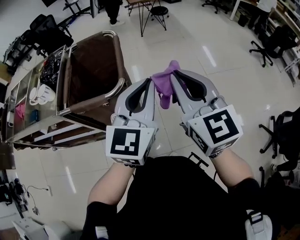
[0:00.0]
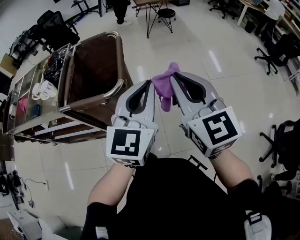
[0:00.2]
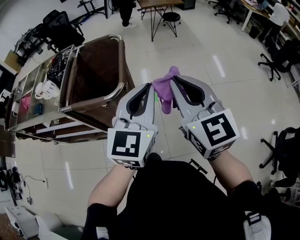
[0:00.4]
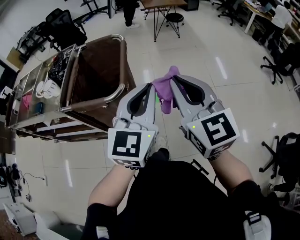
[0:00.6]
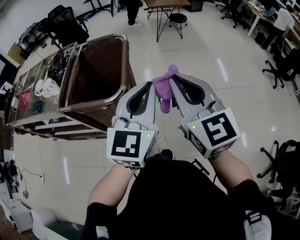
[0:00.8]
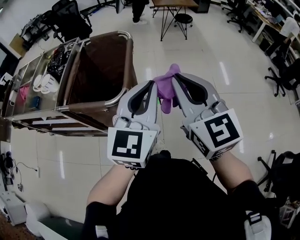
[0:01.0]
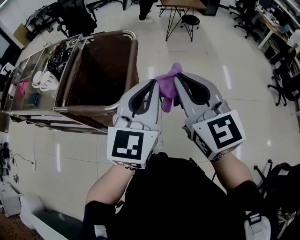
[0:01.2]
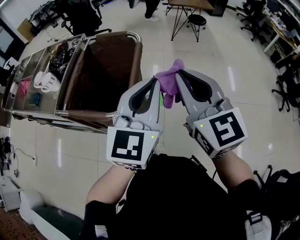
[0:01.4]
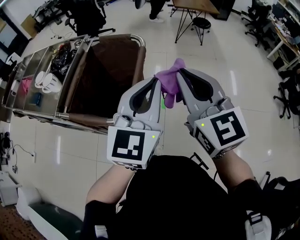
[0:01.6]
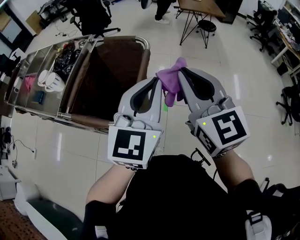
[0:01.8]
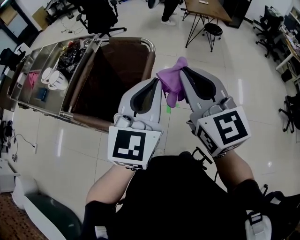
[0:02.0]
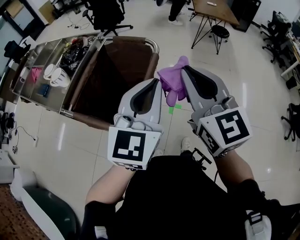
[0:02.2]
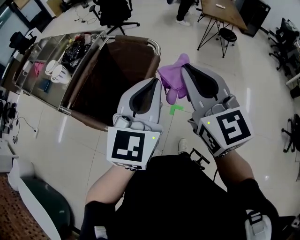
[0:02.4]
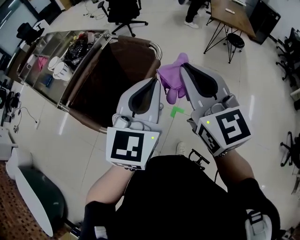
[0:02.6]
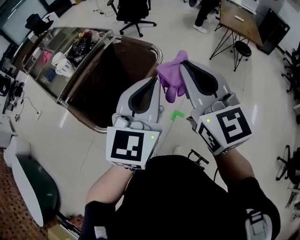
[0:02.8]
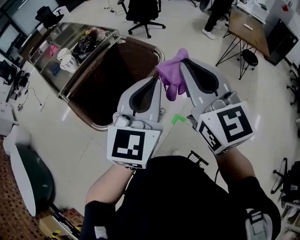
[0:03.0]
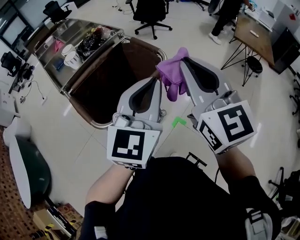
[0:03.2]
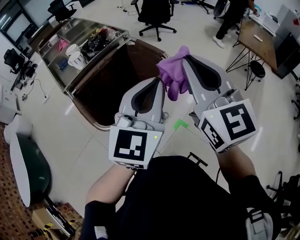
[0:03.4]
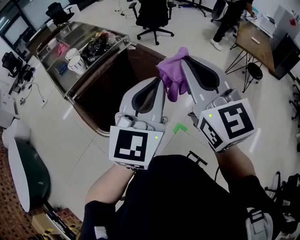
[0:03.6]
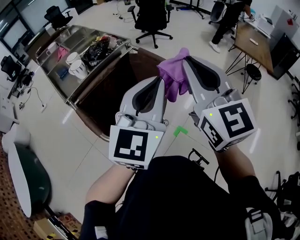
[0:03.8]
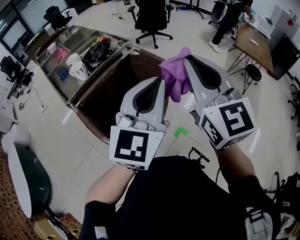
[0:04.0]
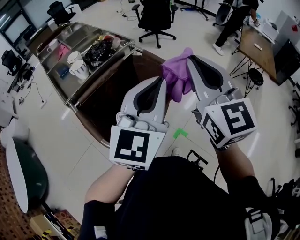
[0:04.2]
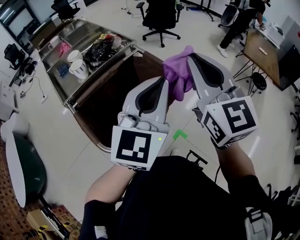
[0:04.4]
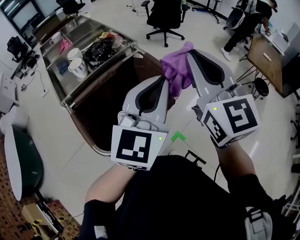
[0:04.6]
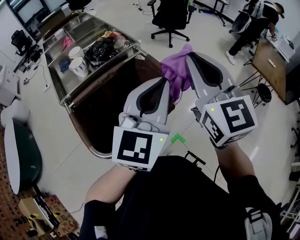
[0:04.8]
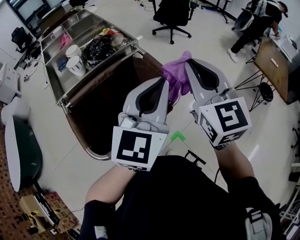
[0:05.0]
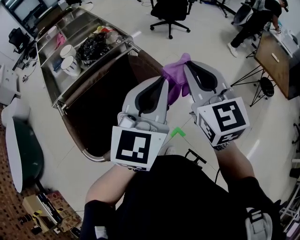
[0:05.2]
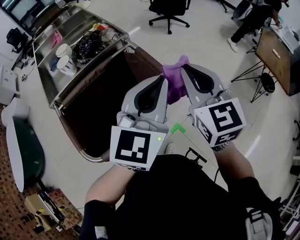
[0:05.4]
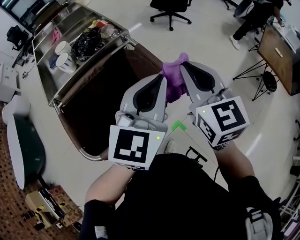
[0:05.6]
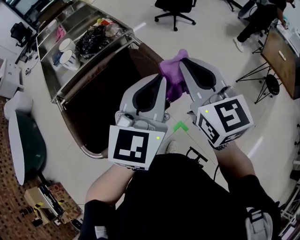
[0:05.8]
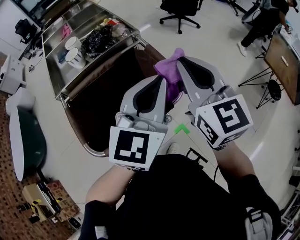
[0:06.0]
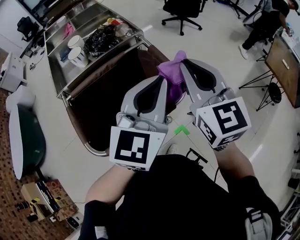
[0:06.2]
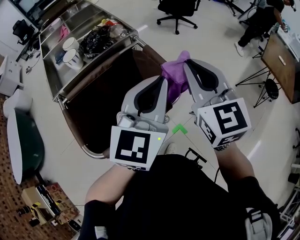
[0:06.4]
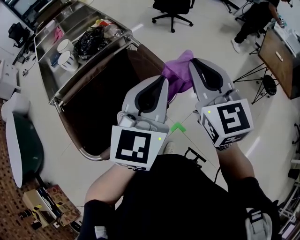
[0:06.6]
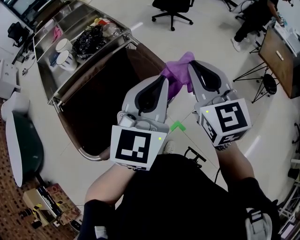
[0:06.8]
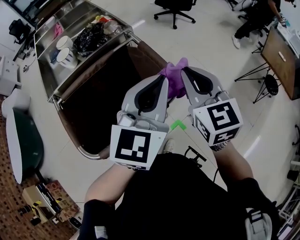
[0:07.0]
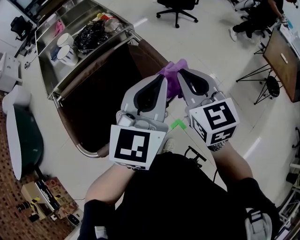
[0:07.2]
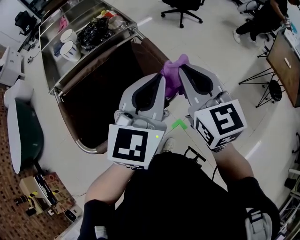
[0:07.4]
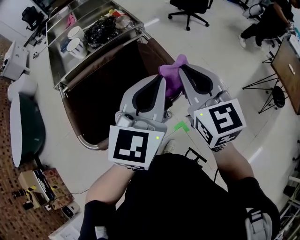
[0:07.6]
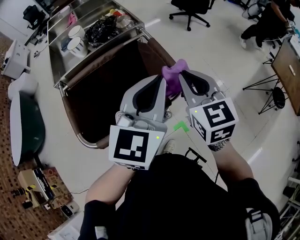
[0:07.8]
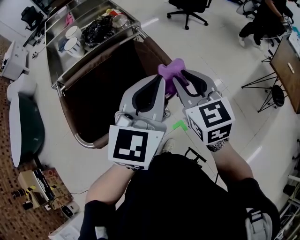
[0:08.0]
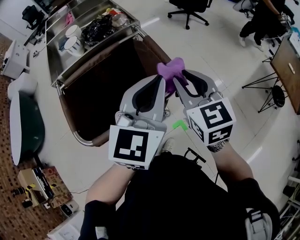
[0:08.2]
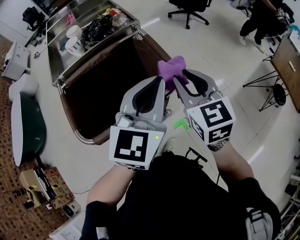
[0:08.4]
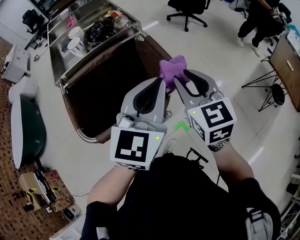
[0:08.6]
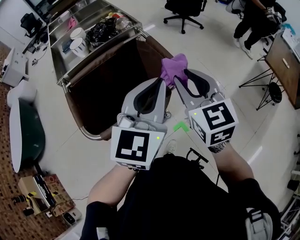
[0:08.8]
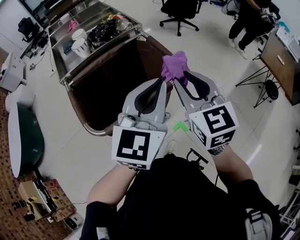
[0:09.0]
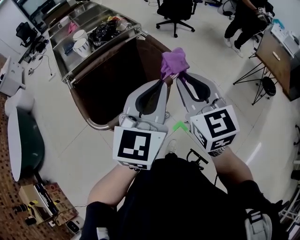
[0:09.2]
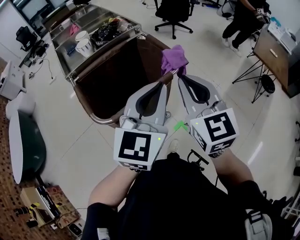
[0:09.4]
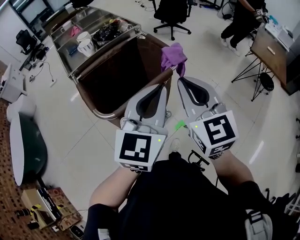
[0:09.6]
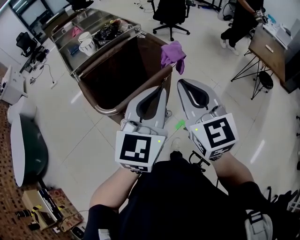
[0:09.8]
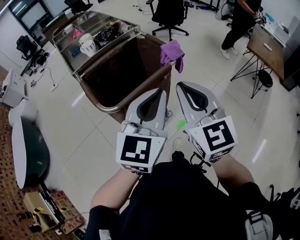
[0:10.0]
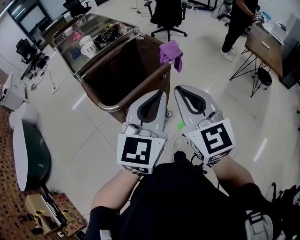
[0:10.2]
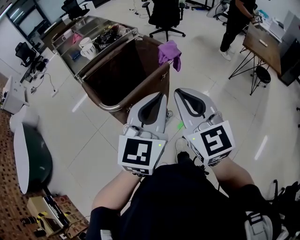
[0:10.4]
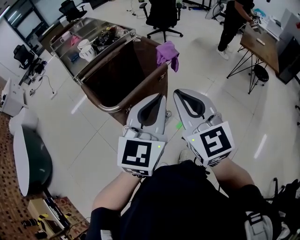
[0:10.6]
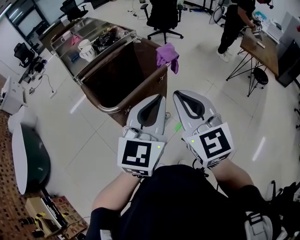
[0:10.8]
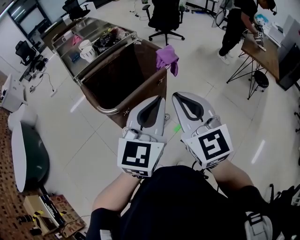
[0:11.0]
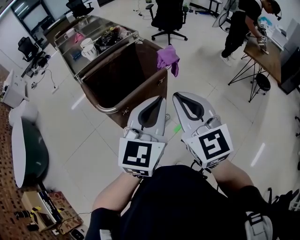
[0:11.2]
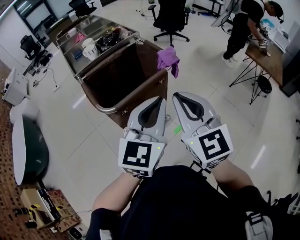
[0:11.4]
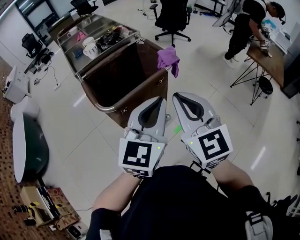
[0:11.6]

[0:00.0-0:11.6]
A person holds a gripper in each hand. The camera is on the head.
0:00.0 to 0:01.4: Both grippers move forward, roughly 15 cm.
0:01.4 to 0:02.8: The right gripper heads forward, upward and to the right, covering some 20 cm, and changes its angle by about 20 degrees, while the left gripper moves forward and to the right, approximately 15 cm, and rotates about 20 degrees.
0:02.8 to 0:04.4: Both grippers move forward, some 10 cm.
0:04.4 to 0:05.8: The right gripper shifts approximately 15 cm forward and downward. Meanwhile the left gripper moves forward, downward and to the right, some 15 cm.
0:05.8 to 0:07.2: The right gripper travels downward by approximately 10 cm.
0:07.2 to 0:08.8: The grippers both shift backward by approximately 5 cm. The right gripper opens.
0:08.8 to 0:10.2: The grippers both shift backward by roughly 25 cm. The right gripper closes.
0:10.2 to 0:11.6: The grippers move only a little.

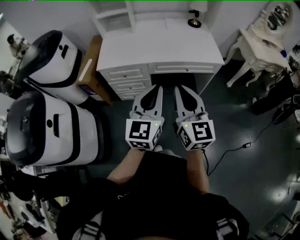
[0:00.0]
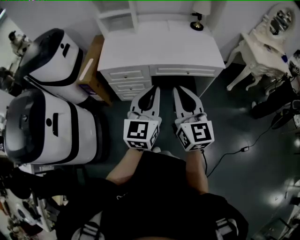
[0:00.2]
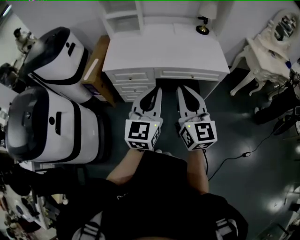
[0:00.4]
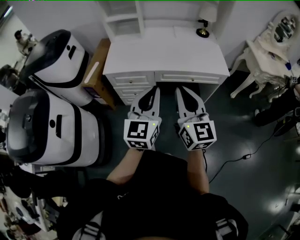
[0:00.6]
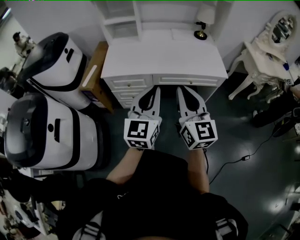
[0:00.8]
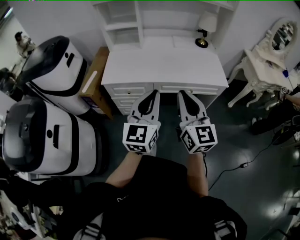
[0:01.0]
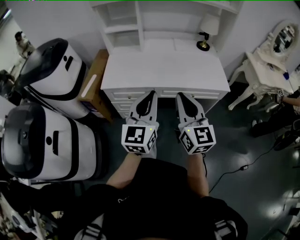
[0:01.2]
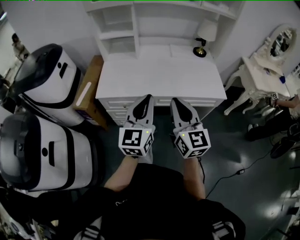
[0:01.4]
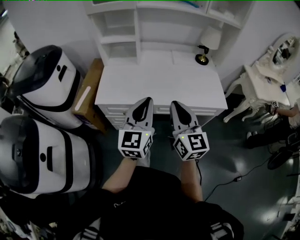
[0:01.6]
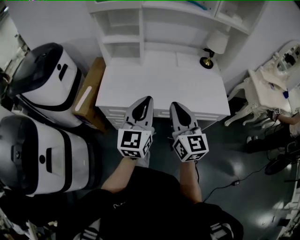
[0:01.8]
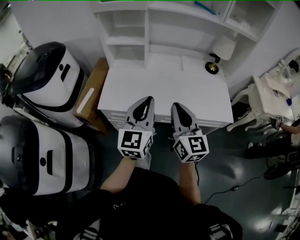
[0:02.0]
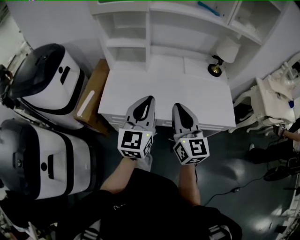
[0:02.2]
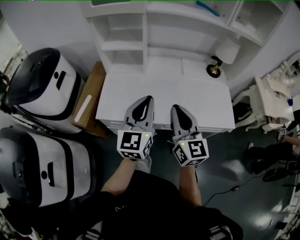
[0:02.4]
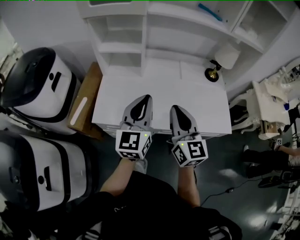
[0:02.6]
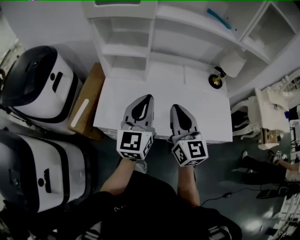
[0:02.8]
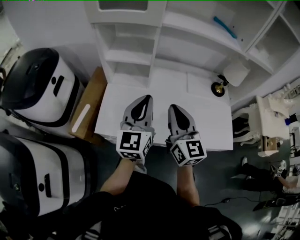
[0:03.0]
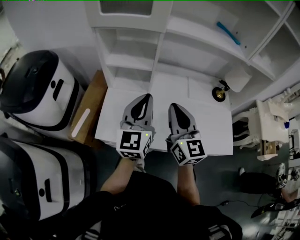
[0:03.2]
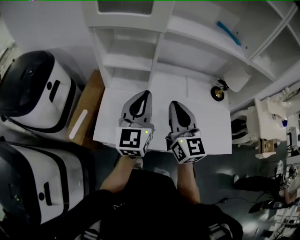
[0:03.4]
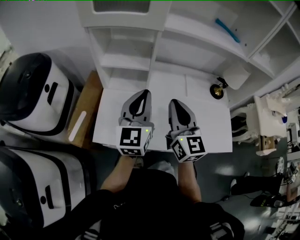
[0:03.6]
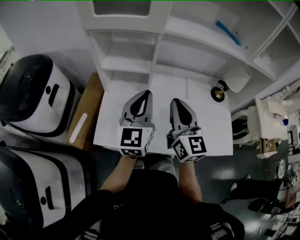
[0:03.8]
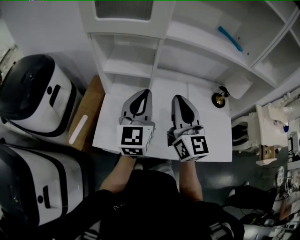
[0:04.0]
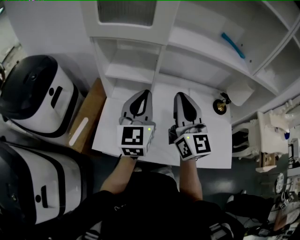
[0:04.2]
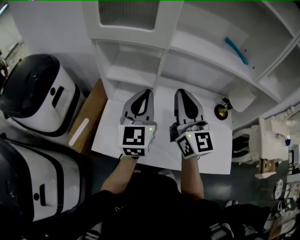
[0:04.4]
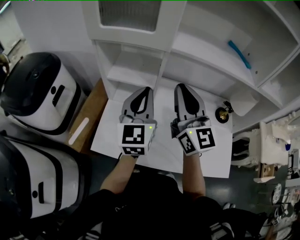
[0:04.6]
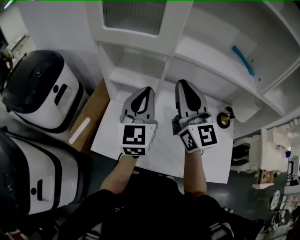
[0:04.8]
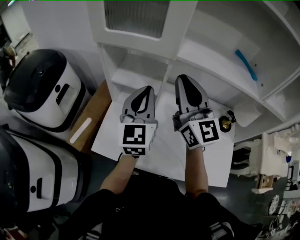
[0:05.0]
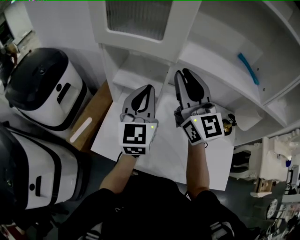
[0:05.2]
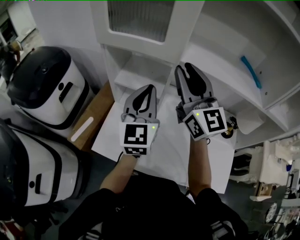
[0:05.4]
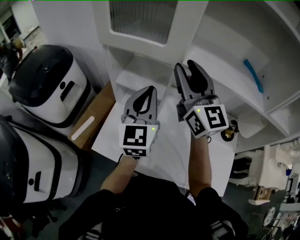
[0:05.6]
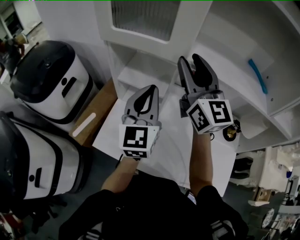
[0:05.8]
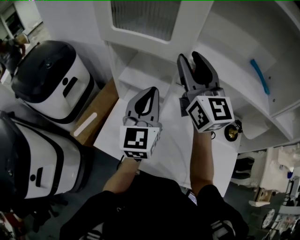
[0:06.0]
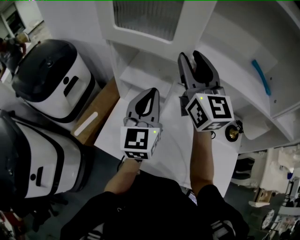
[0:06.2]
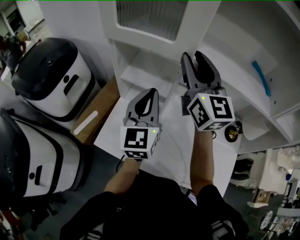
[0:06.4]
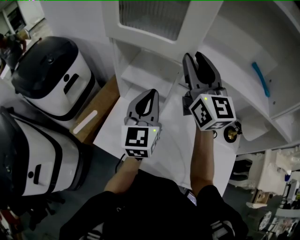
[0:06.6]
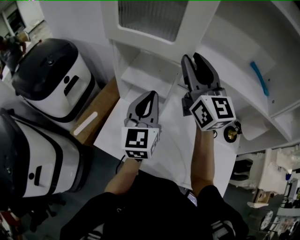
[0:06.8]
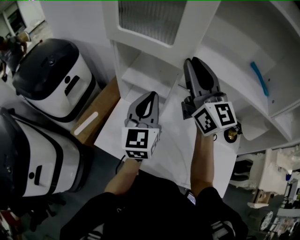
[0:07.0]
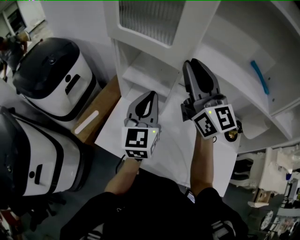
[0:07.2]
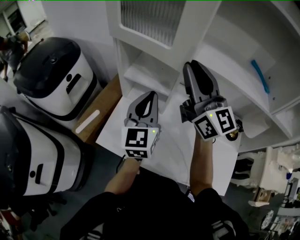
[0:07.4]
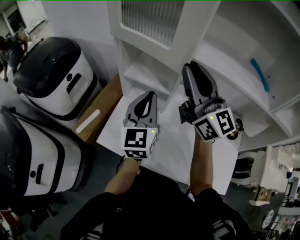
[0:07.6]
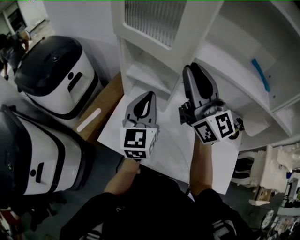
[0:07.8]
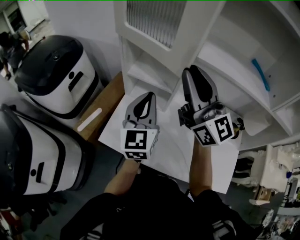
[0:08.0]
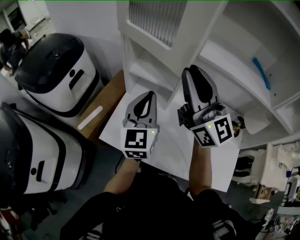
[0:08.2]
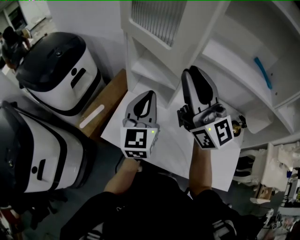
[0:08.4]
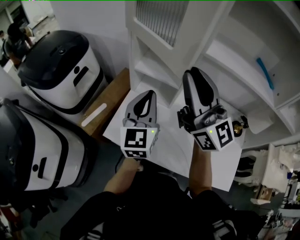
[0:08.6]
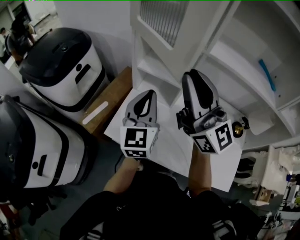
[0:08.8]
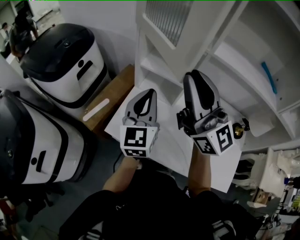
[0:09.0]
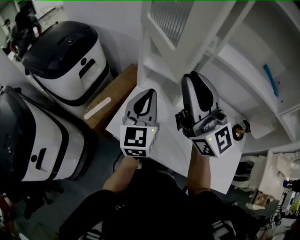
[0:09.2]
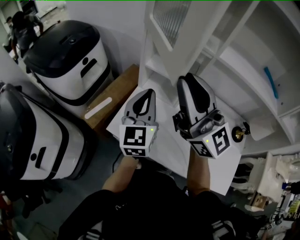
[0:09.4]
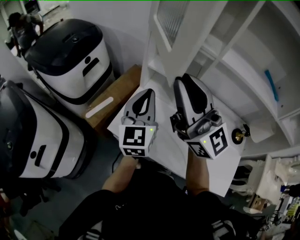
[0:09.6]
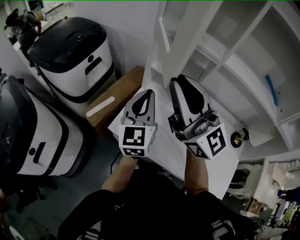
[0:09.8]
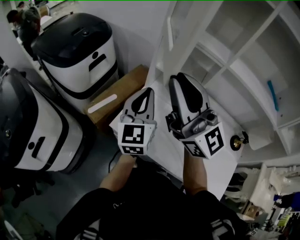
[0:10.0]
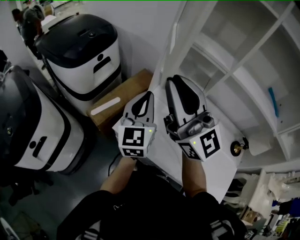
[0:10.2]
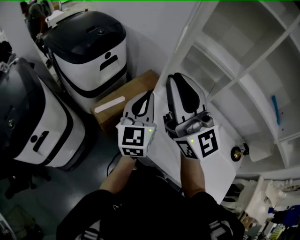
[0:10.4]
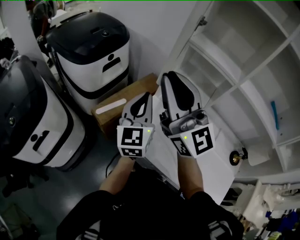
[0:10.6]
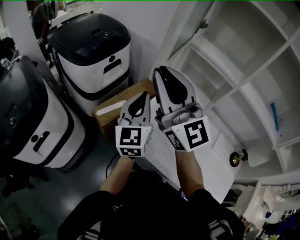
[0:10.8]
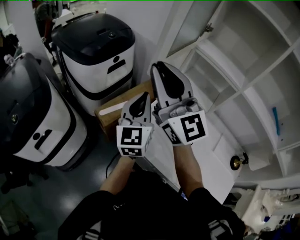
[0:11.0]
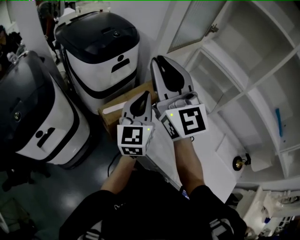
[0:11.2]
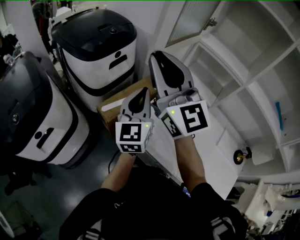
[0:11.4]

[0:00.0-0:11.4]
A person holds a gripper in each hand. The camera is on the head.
0:00.0 to 0:01.4: The right gripper travels forward by some 15 cm, while the left gripper goes roughly 15 cm forward and to the left.
0:01.4 to 0:02.8: The grippers both shift forward by roughly 25 cm.
0:02.8 to 0:04.2: The right gripper goes about 15 cm forward and upward. Meanwhile the left gripper travels forward by roughly 15 cm.
0:04.2 to 0:05.6: The right gripper travels forward and upward by about 15 cm, and opens its fingers; the left gripper heads forward, covering approximately 5 cm.
0:05.6 to 0:07.2: The grippers move only a little.
0:07.2 to 0:08.6: The left gripper moves to the left, roughly 5 cm, while the right gripper moves to the left and backward, approximately 10 cm.
0:08.6 to 0:10.0: The two grippers go some 10 cm to the left.
0:10.0 to 0:11.4: The left gripper heads to the left, covering roughly 10 cm. Meanwhile the right gripper shifts about 15 cm to the left and forward.

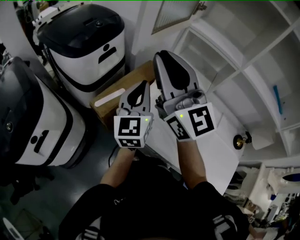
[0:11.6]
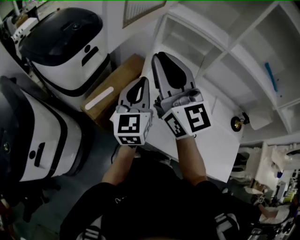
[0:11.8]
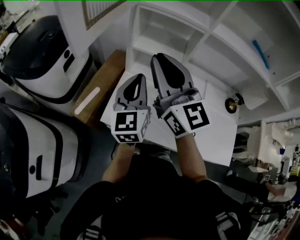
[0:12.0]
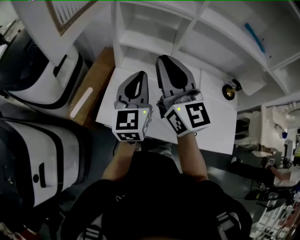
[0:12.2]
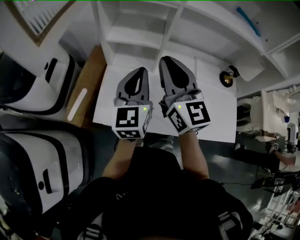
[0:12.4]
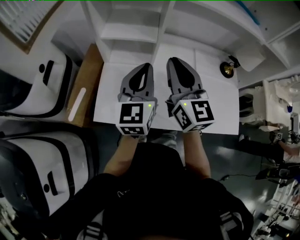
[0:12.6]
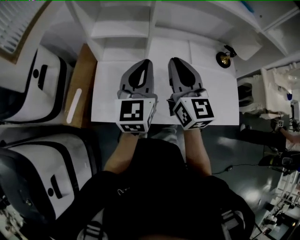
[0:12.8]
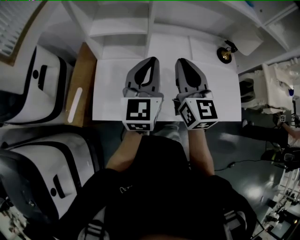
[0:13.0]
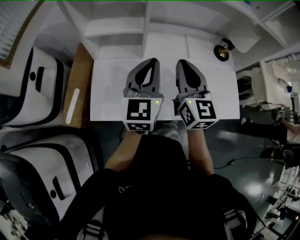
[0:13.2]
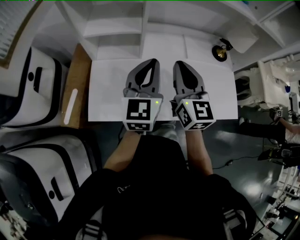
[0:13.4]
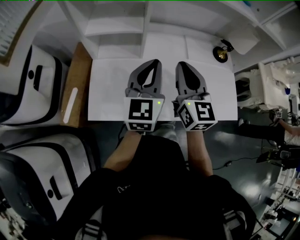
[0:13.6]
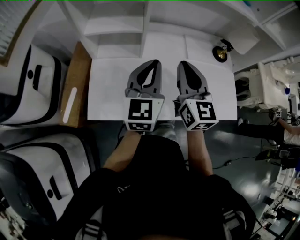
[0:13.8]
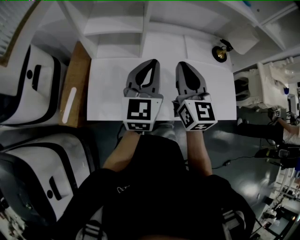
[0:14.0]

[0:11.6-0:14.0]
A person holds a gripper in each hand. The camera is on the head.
0:11.6 to 0:12.8: The left gripper moves approximately 25 cm, and rotates some 40 degrees, while the right gripper shifts by roughly 35 cm, and rotates approximately 50 degrees.
0:12.8 to 0:14.0: The right gripper moves about 5 cm.
